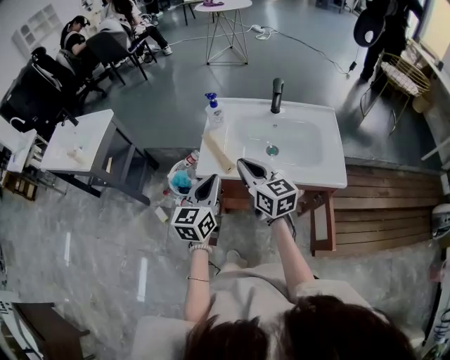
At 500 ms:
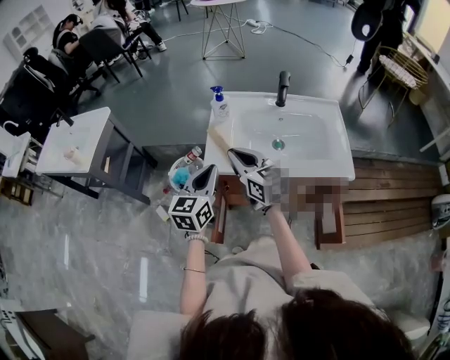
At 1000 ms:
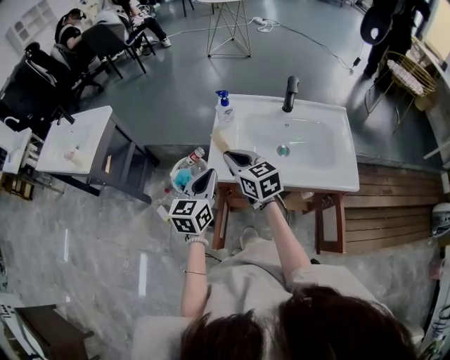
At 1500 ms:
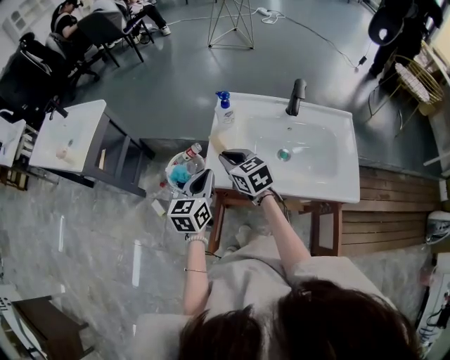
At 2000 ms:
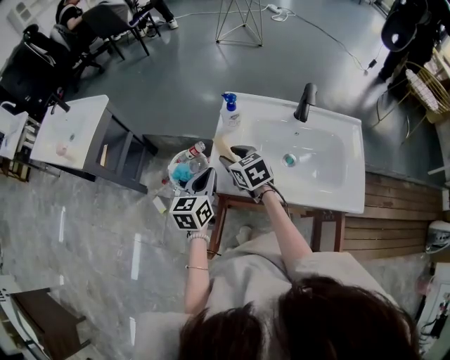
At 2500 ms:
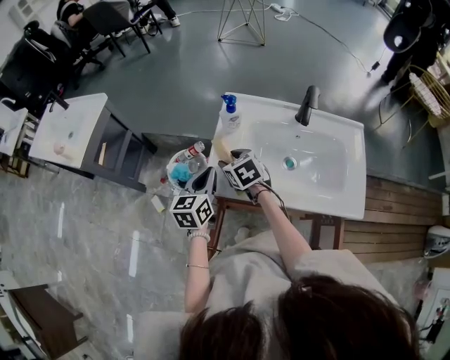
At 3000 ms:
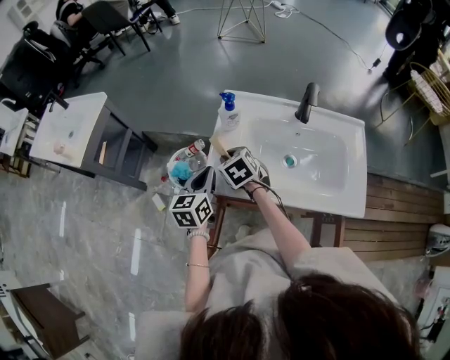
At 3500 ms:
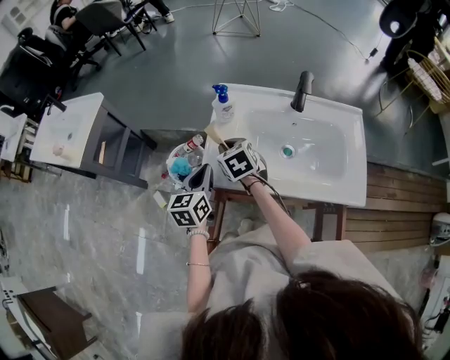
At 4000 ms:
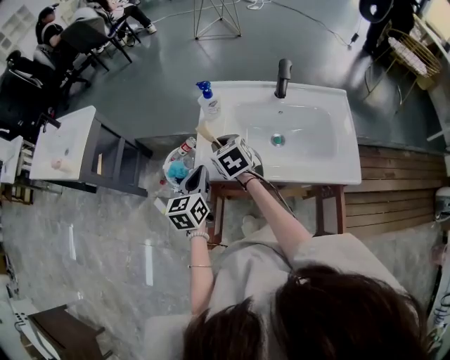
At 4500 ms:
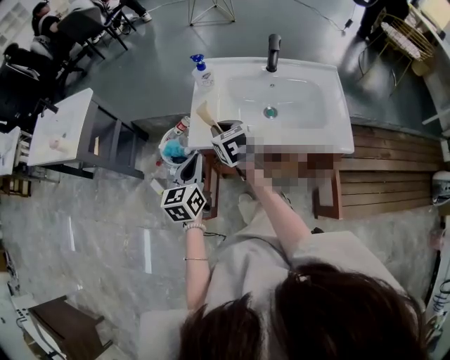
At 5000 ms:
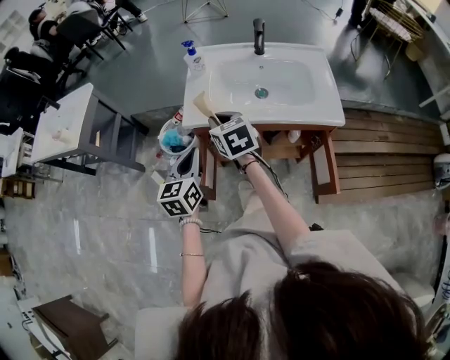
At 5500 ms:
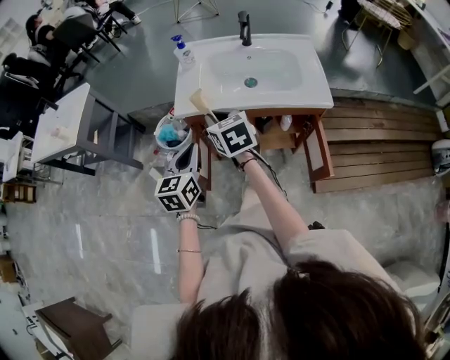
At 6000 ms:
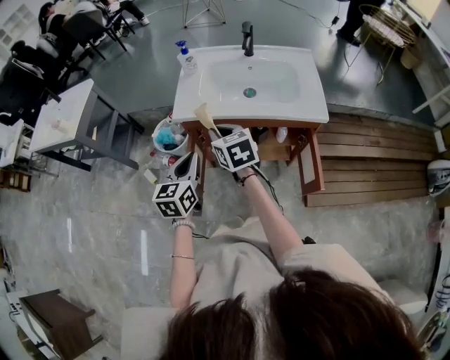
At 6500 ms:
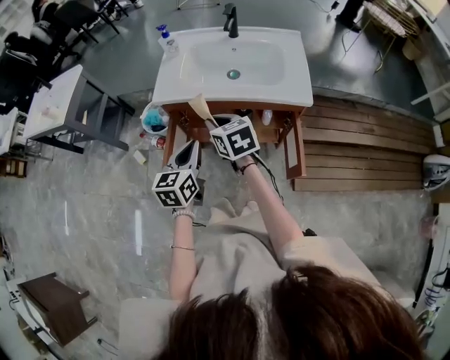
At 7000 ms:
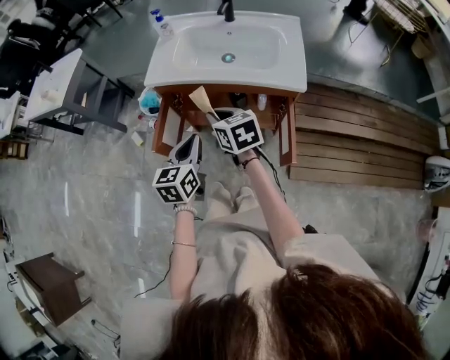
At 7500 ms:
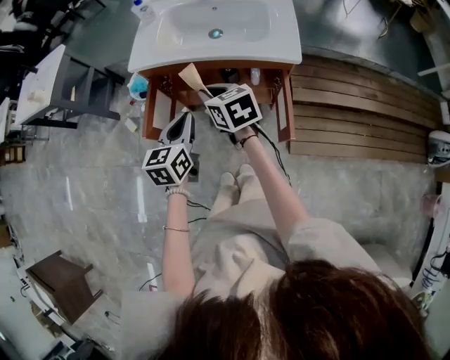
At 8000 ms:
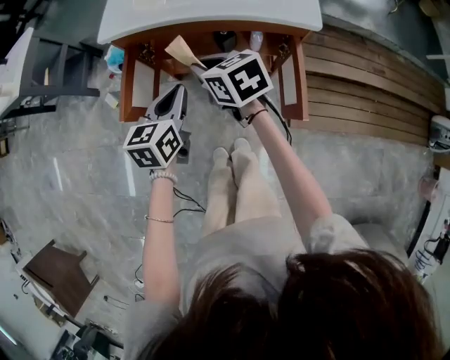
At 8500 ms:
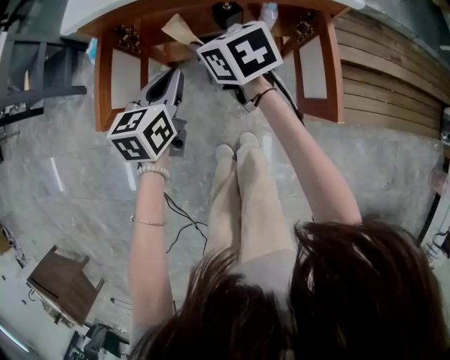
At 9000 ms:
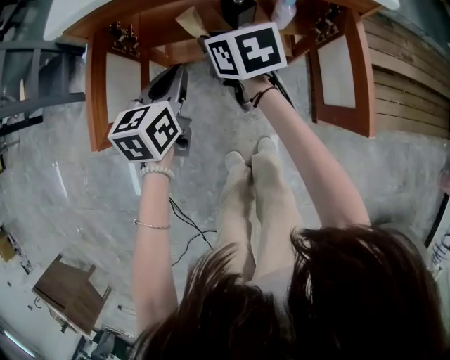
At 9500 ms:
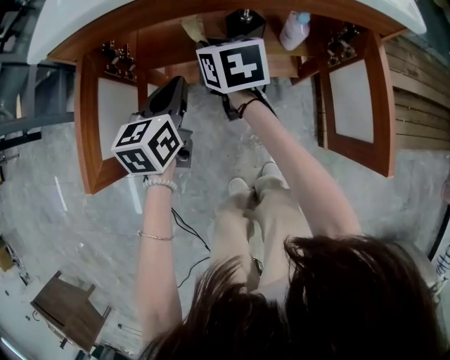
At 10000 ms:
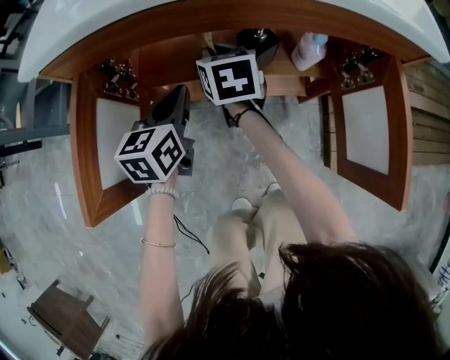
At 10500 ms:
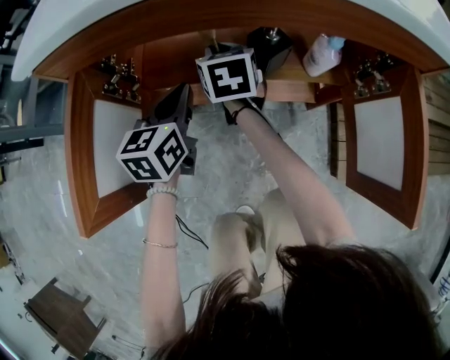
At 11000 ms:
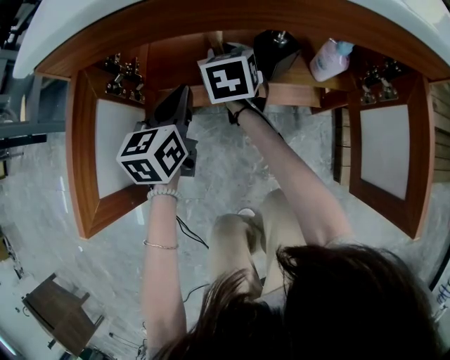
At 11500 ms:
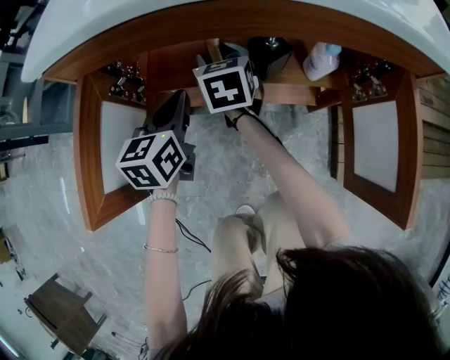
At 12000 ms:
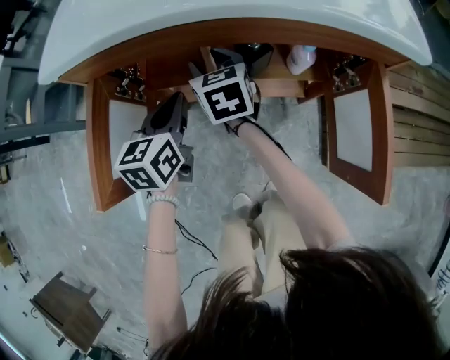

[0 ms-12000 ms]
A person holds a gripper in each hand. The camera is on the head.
0 ms to 2000 ms: The left gripper is displaced forward and downward by roughly 15 cm; the right gripper goes roughly 20 cm forward, downward and to the left, rotates roughly 30 degrees, and opens up.
2000 ms to 4000 ms: The grippers make only small movements.
4000 ms to 6000 ms: Both grippers move backward, some 20 cm.
6000 ms to 8000 ms: The right gripper moves downward, to the right and backward, about 15 cm. Meanwhile the left gripper is displaced to the right and downward by roughly 15 cm.
8000 ms to 10000 ms: Both grippers move downward and forward, approximately 30 cm. The right gripper rotates roughly 30 degrees.
10000 ms to 12000 ms: The right gripper ends up roughly 5 cm from where it was, and opens its fingers.

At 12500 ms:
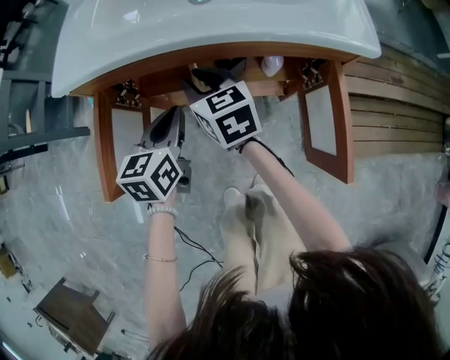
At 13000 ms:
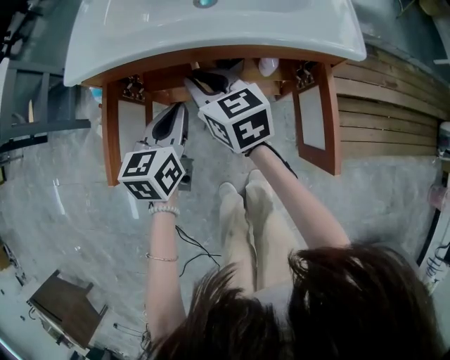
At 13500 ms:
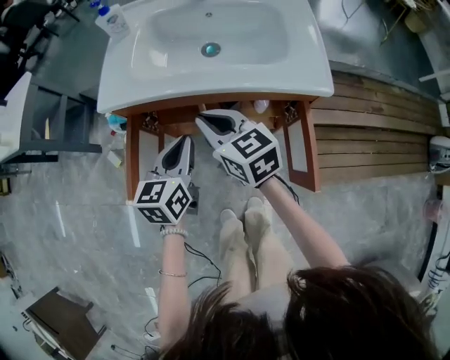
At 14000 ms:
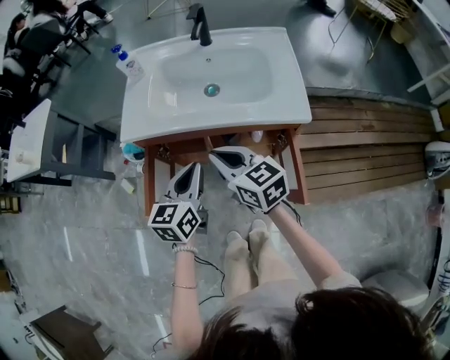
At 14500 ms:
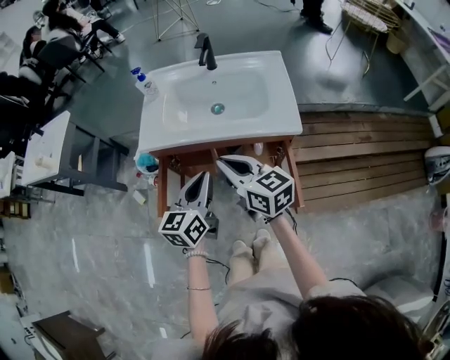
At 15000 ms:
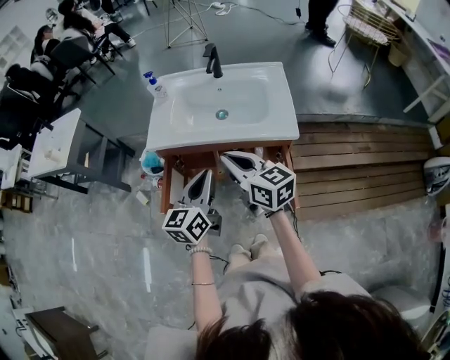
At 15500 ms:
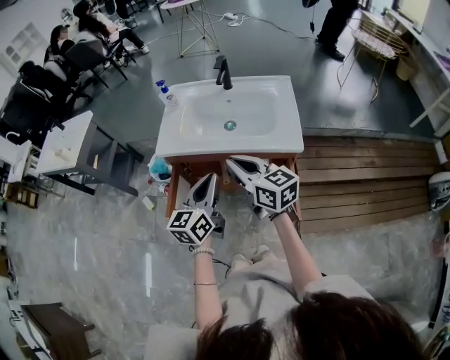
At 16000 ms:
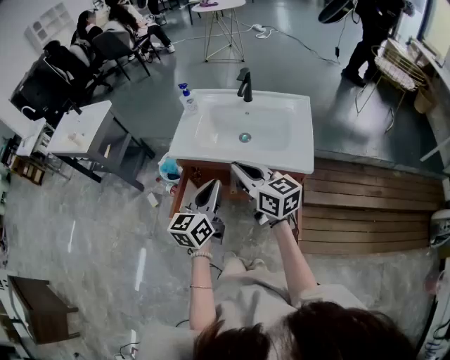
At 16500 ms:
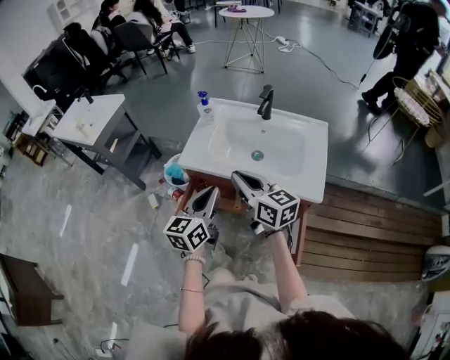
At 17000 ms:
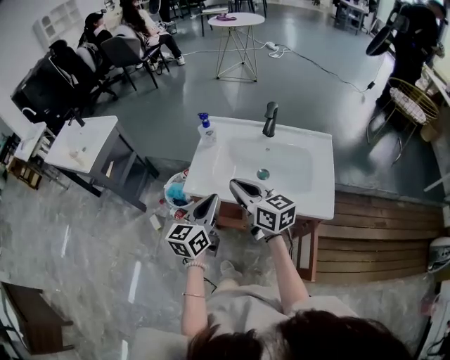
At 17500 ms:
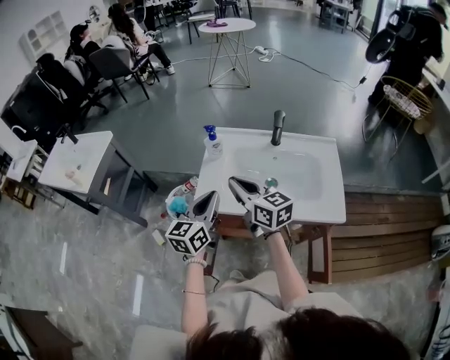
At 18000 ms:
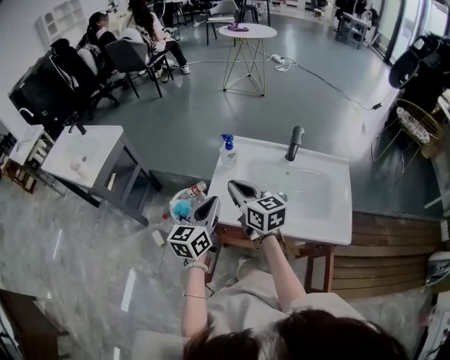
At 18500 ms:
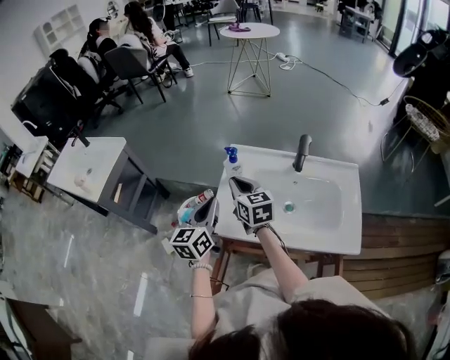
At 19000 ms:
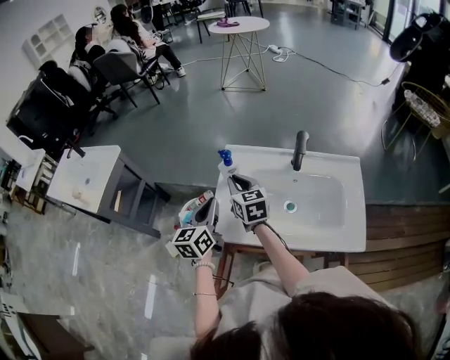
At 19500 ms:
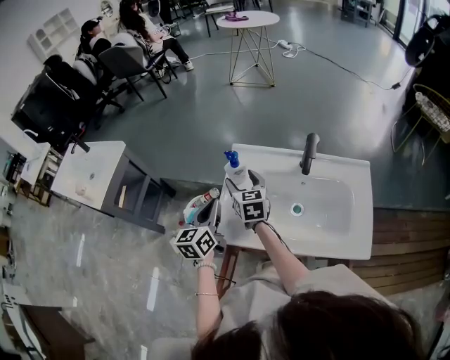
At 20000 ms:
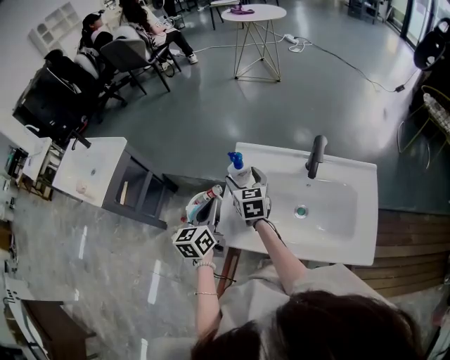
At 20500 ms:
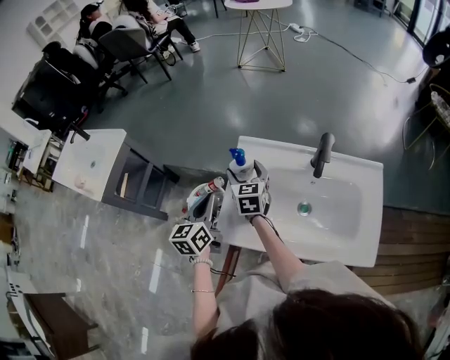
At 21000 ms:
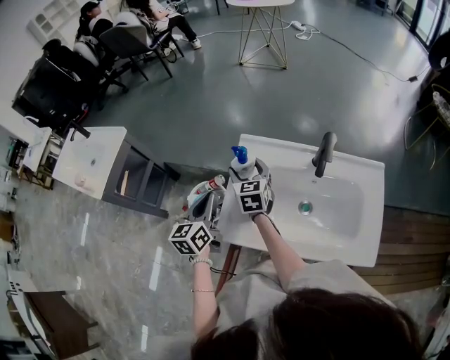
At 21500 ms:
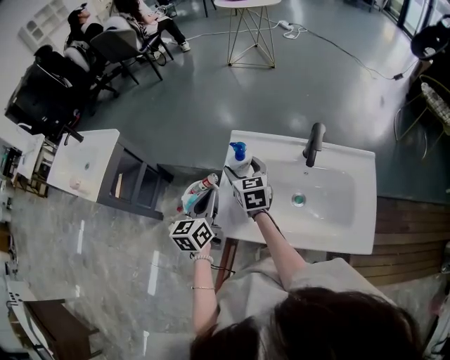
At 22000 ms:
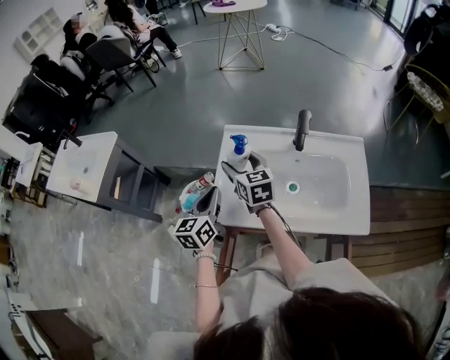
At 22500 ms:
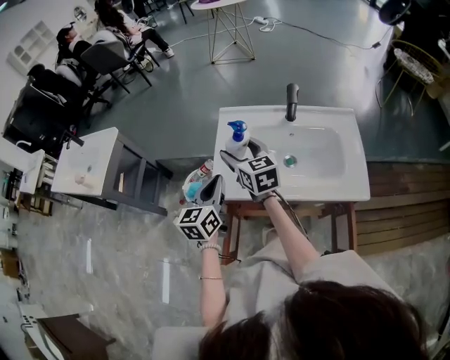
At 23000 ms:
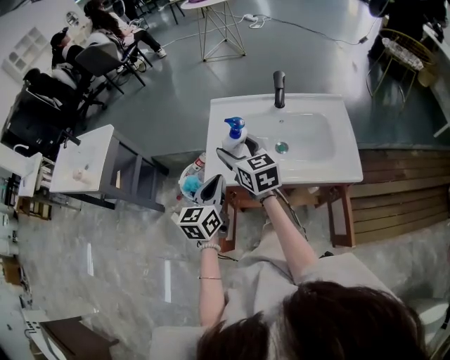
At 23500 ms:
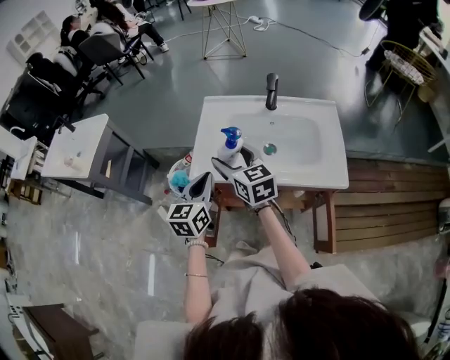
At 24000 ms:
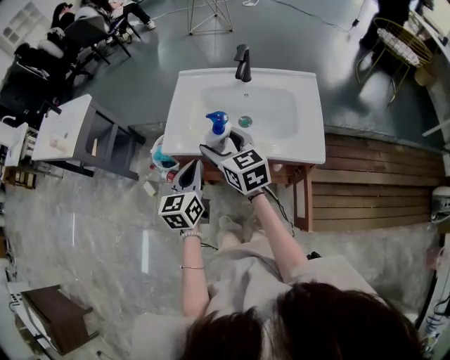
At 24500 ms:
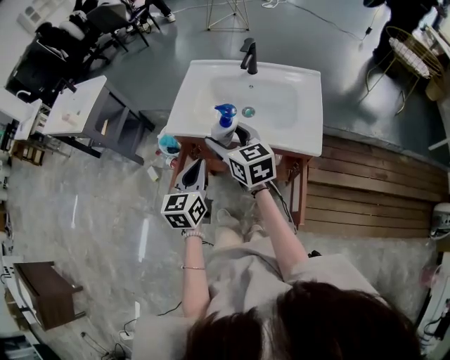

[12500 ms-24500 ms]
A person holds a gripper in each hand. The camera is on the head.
12500 ms to 14500 ms: The right gripper moves upward and backward, roughly 30 cm, and changes its angle by approximately 20 degrees; the left gripper is displaced upward by some 25 cm.
14500 ms to 16500 ms: The right gripper goes some 10 cm forward and upward. The left gripper moves about 10 cm.
16500 ms to 18500 ms: The grippers both shift forward and to the left by some 30 cm. The right gripper swivels some 20 degrees.
18500 ms to 20500 ms: The two grippers go approximately 10 cm forward and downward. The right gripper opens.
20500 ms to 22500 ms: The left gripper heads backward and to the right, covering roughly 10 cm. The right gripper is displaced backward and upward by approximately 15 cm.
22500 ms to 24500 ms: Both grippers move backward and to the right, about 25 cm.

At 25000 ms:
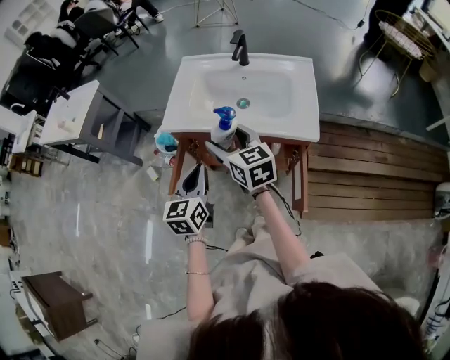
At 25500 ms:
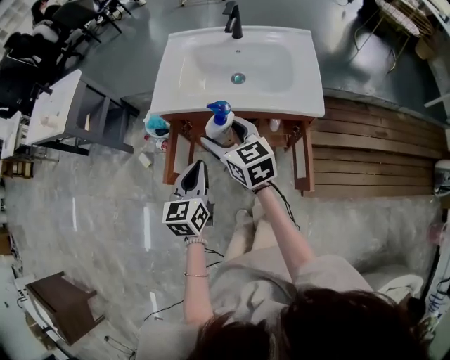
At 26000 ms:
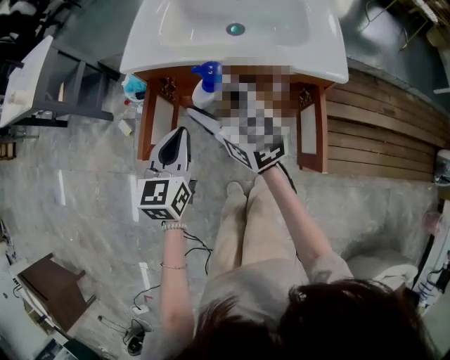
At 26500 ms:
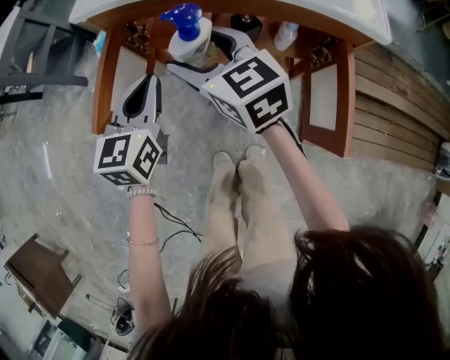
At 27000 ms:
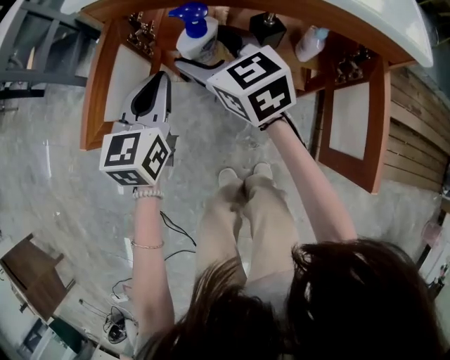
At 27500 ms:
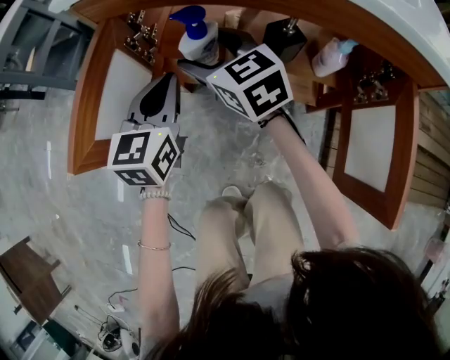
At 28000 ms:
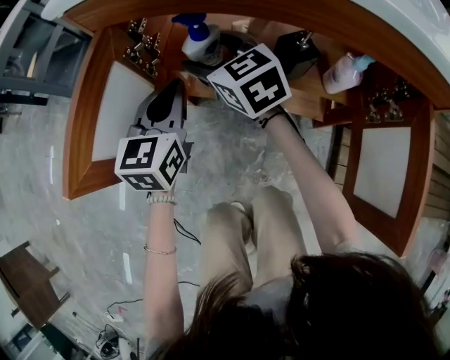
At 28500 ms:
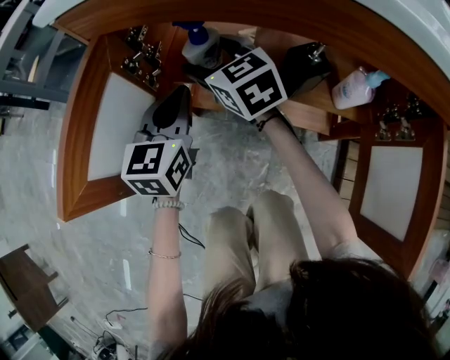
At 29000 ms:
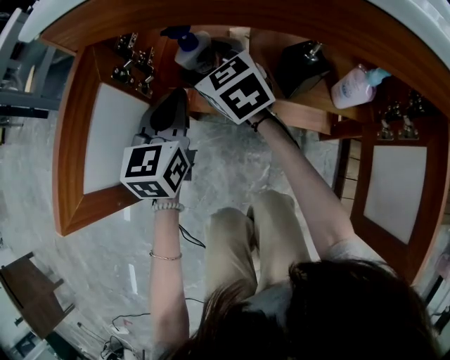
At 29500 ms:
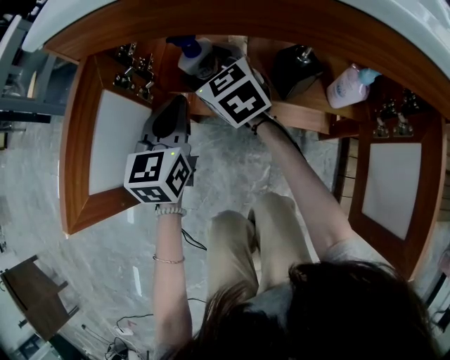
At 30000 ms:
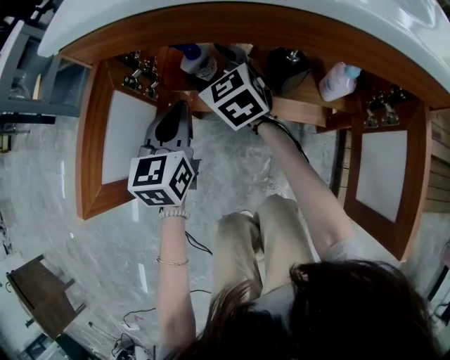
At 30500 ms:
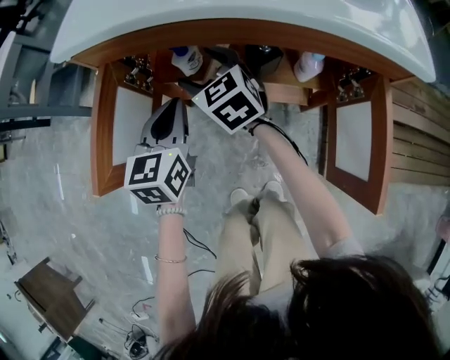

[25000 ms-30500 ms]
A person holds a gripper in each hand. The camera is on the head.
25000 ms to 27000 ms: The two grippers go roughly 30 cm downward.
27000 ms to 28500 ms: The left gripper shifts about 15 cm downward and forward. The right gripper is displaced forward and downward by some 15 cm.
28500 ms to 30500 ms: The left gripper heads upward and backward, covering some 10 cm; the right gripper travels backward and upward by approximately 10 cm.
